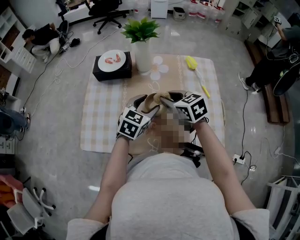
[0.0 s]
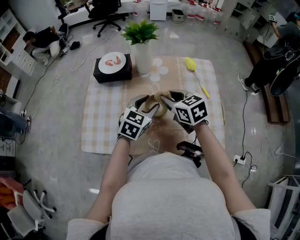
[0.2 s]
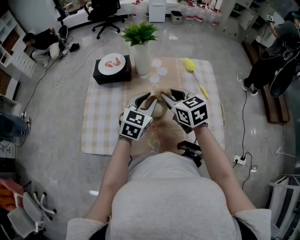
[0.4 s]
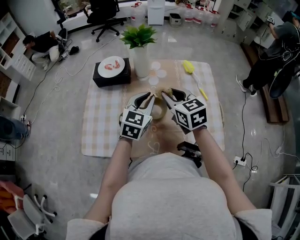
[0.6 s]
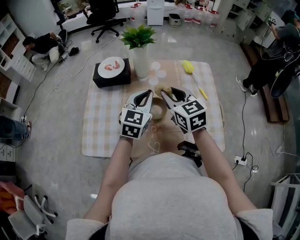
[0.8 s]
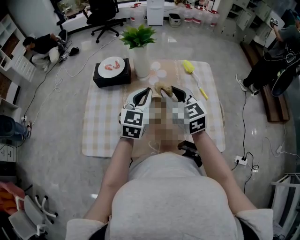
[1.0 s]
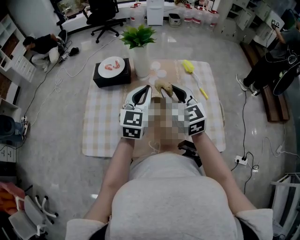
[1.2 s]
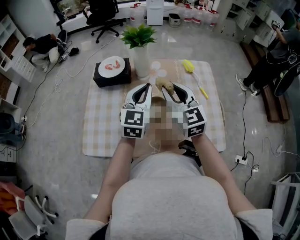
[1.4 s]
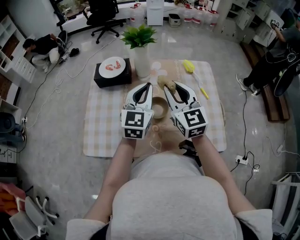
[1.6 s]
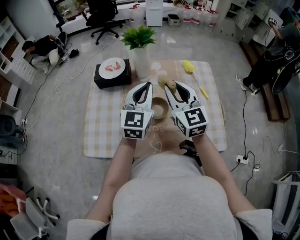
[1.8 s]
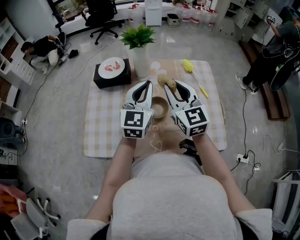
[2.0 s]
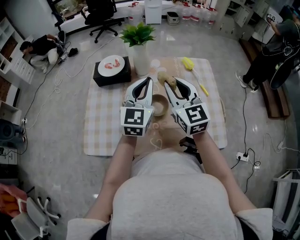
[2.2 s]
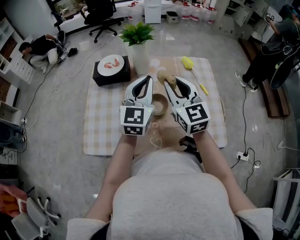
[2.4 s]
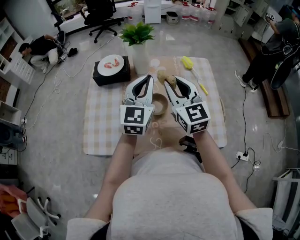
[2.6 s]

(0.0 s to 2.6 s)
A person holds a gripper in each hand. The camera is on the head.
0.0 s - 1.2 s: The two grippers go about 10 cm upward. The left gripper swivels some 30 degrees, and closes its fingers. Meanwhile the right gripper rotates some 30 degrees.
1.2 s - 2.6 s: The grippers move only a little.

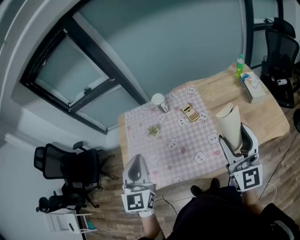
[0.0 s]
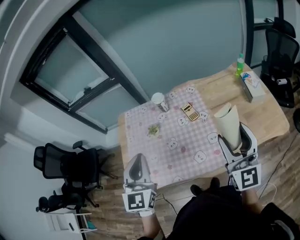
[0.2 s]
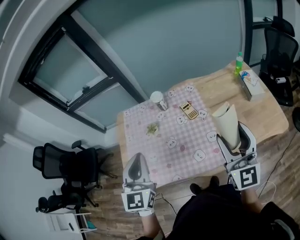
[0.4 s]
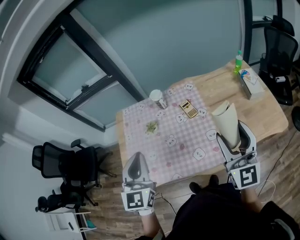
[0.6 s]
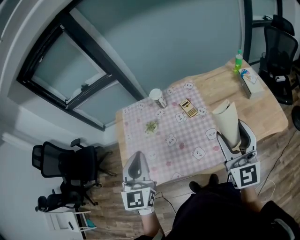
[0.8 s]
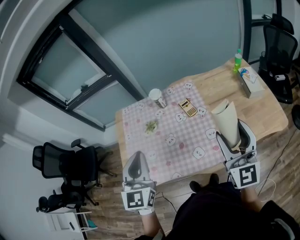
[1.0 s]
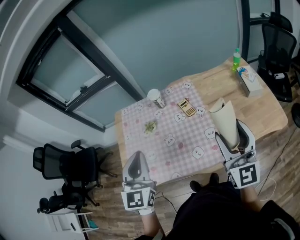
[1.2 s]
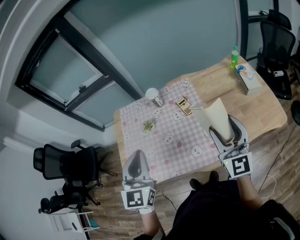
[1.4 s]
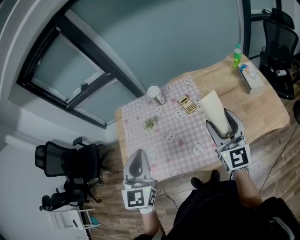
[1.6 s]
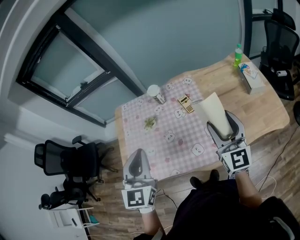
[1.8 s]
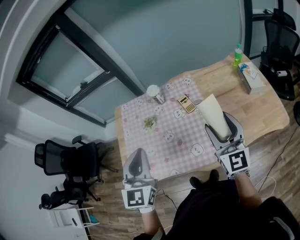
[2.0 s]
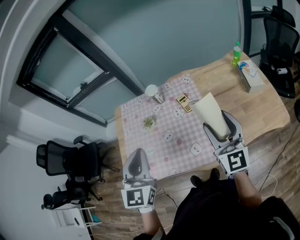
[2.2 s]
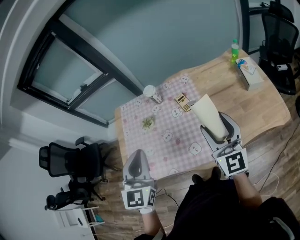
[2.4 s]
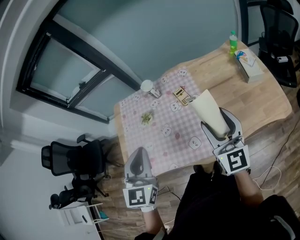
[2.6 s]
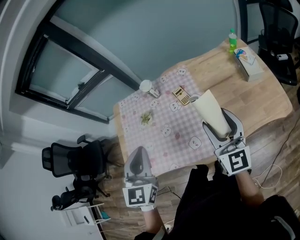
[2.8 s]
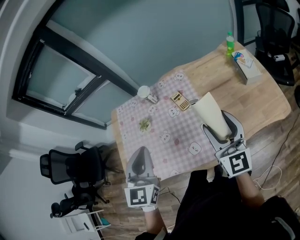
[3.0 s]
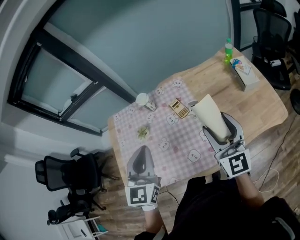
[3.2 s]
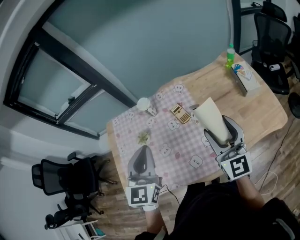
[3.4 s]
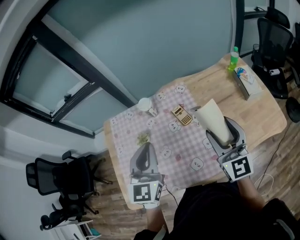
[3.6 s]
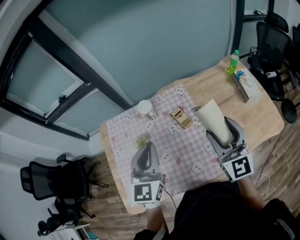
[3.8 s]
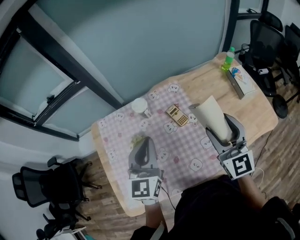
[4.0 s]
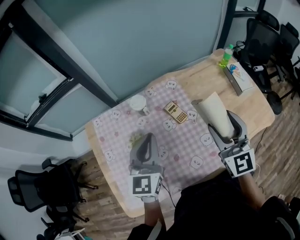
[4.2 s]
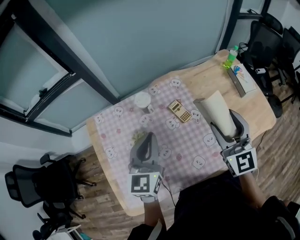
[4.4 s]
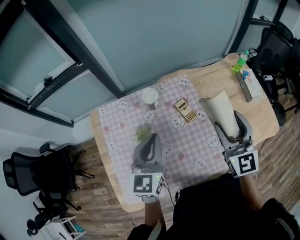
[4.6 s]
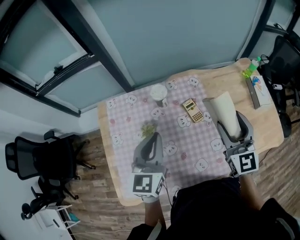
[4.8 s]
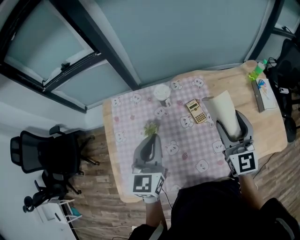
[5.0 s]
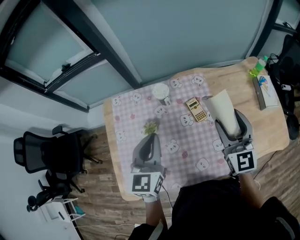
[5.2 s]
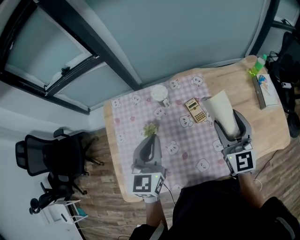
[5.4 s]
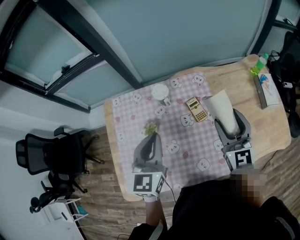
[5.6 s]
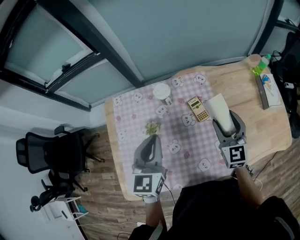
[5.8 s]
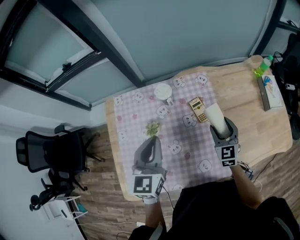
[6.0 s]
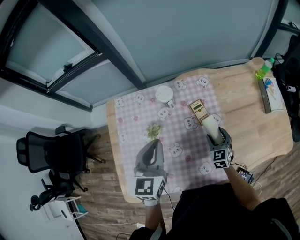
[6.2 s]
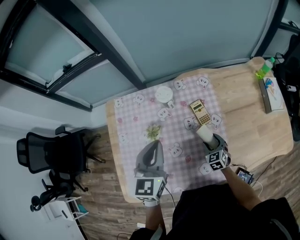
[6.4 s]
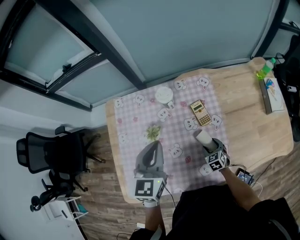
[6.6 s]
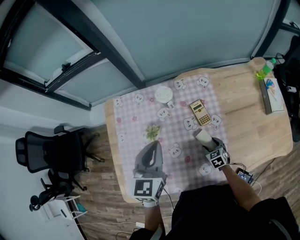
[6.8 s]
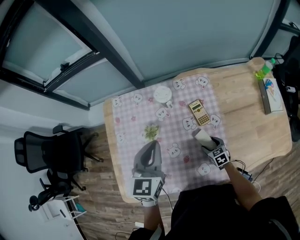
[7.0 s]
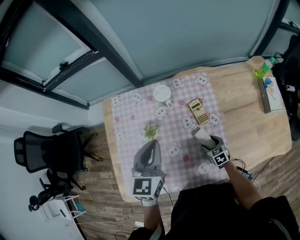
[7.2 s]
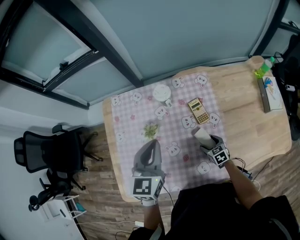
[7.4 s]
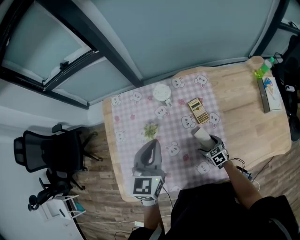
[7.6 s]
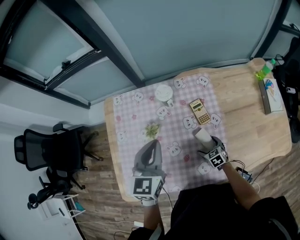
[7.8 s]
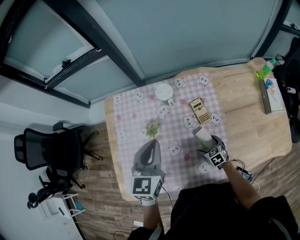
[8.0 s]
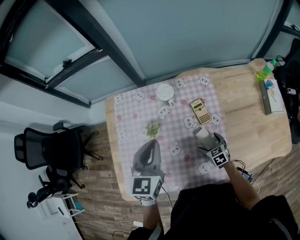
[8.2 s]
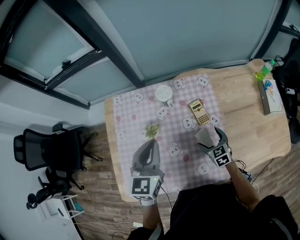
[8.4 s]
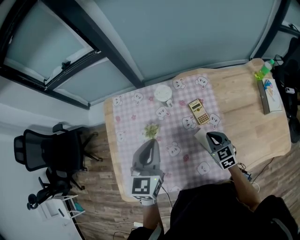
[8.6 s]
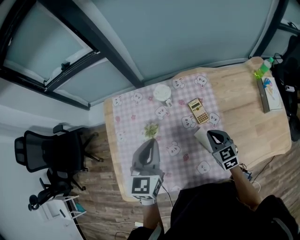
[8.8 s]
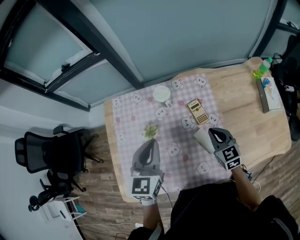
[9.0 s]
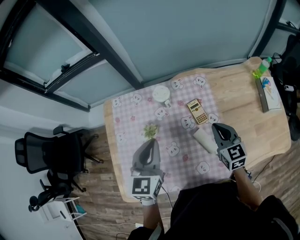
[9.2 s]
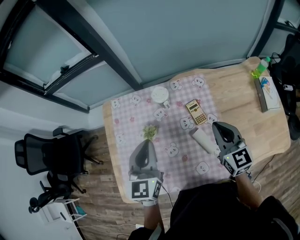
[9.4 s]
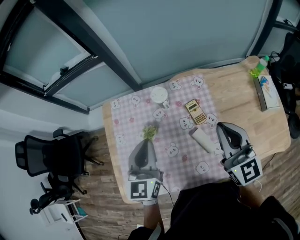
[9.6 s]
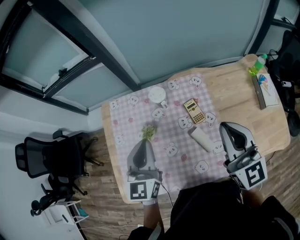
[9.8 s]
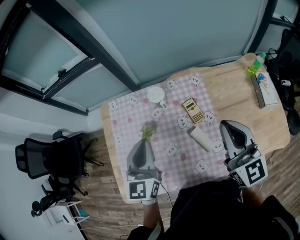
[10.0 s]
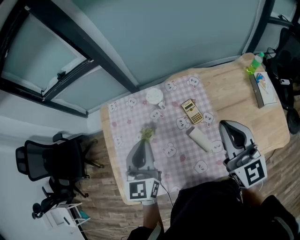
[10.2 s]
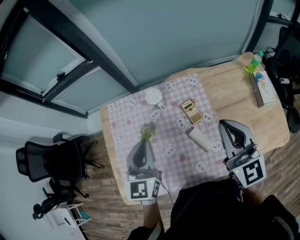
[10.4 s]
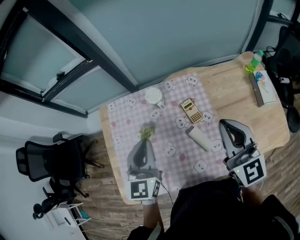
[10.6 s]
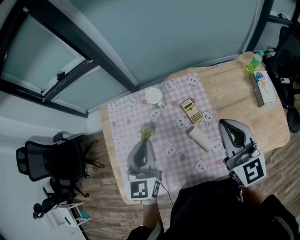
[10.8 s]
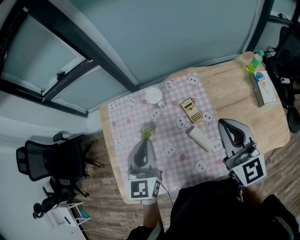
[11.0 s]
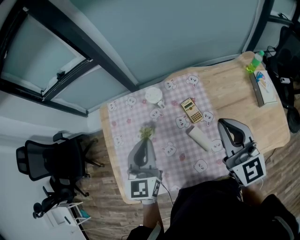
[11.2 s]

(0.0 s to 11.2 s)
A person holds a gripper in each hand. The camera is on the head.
0.0 s - 1.6 s: The right gripper heads forward, covering roughly 5 cm.
1.6 s - 3.2 s: The left gripper is displaced forward and to the right by some 10 cm.
3.2 s - 4.8 s: The left gripper shifts about 20 cm forward, to the left and downward, while the right gripper moves forward and to the left, some 15 cm.
4.8 s - 6.4 s: The right gripper goes roughly 35 cm downward, and points its fingers roughly 40 degrees further downward.
6.4 s - 8.0 s: The right gripper shifts about 5 cm downward, and opens up.
8.0 s - 9.6 s: The right gripper travels upward by approximately 40 cm, tilts its fingers some 50 degrees upward, and closes up.
9.6 s - 11.2 s: There are only small adjustments of the grippers.

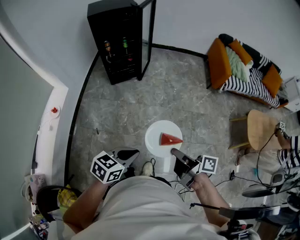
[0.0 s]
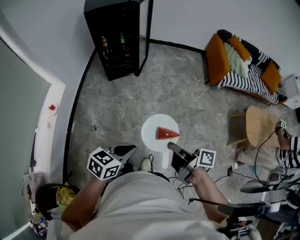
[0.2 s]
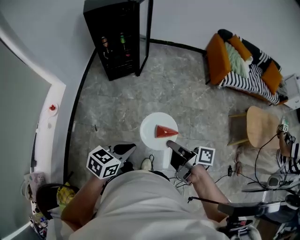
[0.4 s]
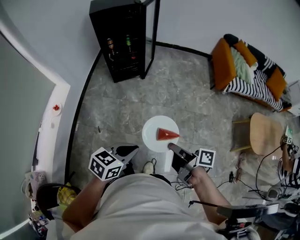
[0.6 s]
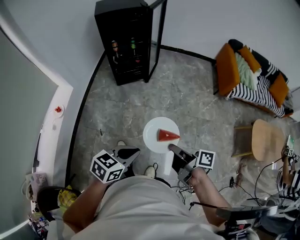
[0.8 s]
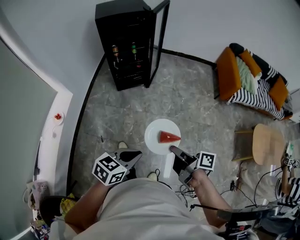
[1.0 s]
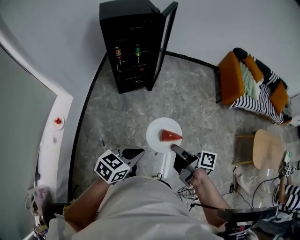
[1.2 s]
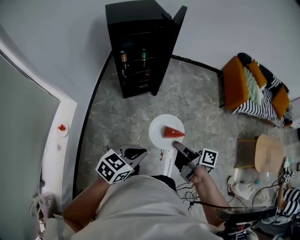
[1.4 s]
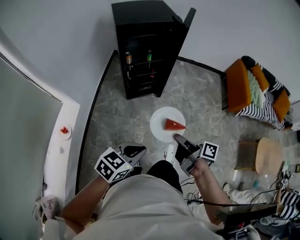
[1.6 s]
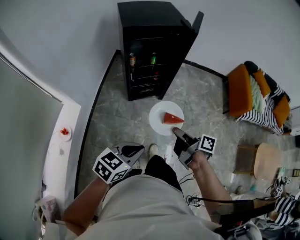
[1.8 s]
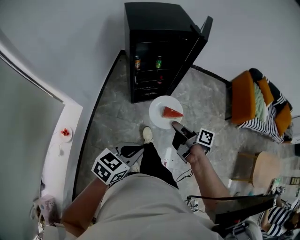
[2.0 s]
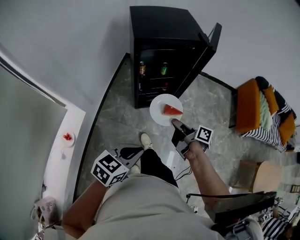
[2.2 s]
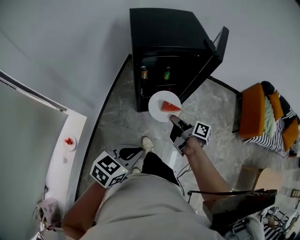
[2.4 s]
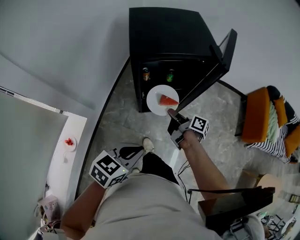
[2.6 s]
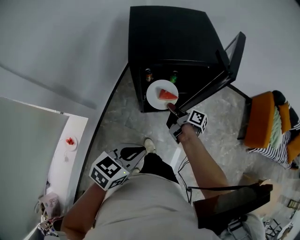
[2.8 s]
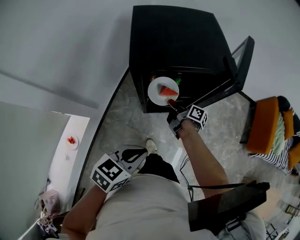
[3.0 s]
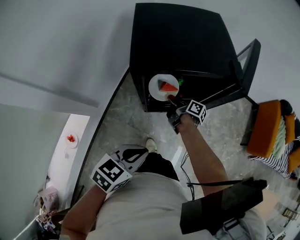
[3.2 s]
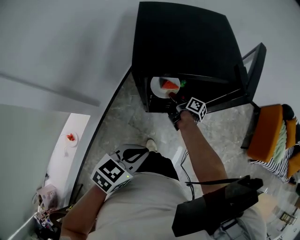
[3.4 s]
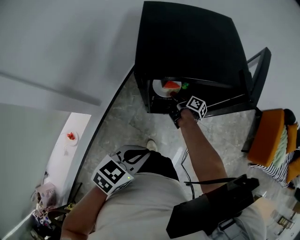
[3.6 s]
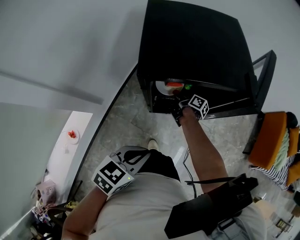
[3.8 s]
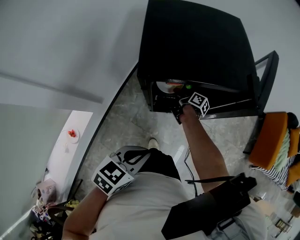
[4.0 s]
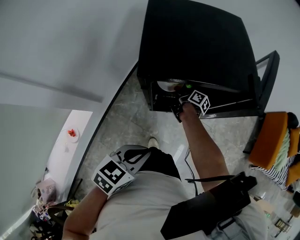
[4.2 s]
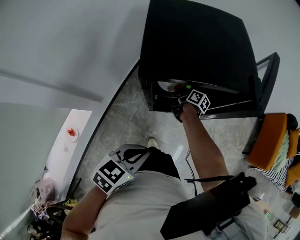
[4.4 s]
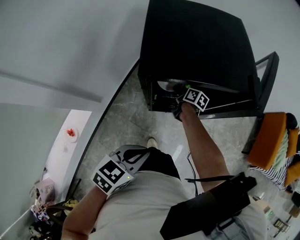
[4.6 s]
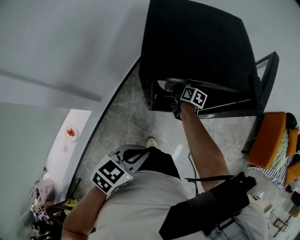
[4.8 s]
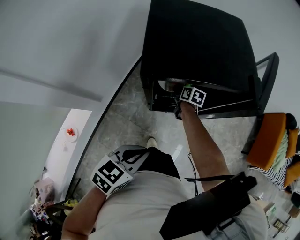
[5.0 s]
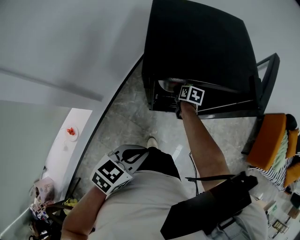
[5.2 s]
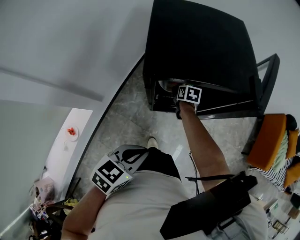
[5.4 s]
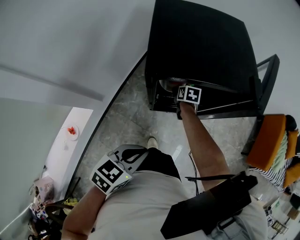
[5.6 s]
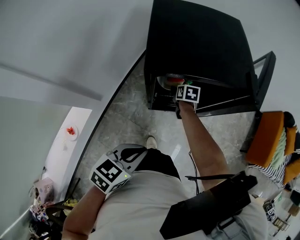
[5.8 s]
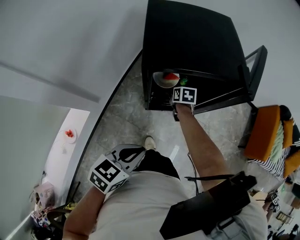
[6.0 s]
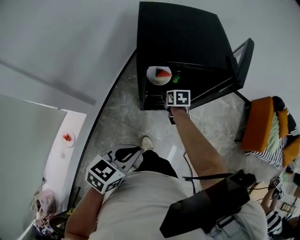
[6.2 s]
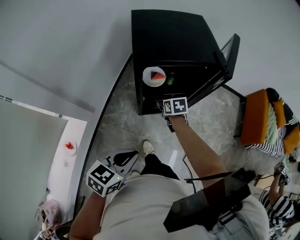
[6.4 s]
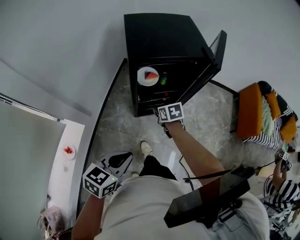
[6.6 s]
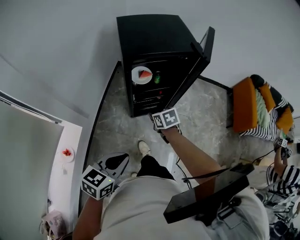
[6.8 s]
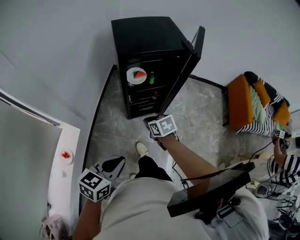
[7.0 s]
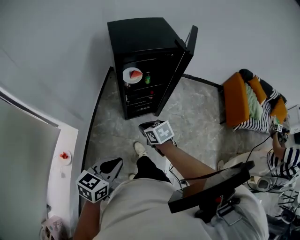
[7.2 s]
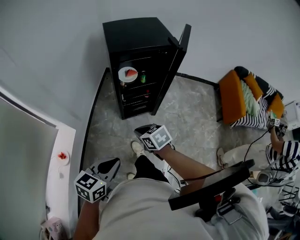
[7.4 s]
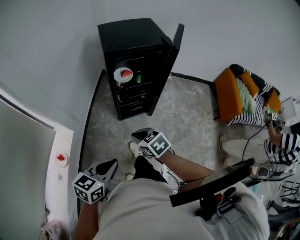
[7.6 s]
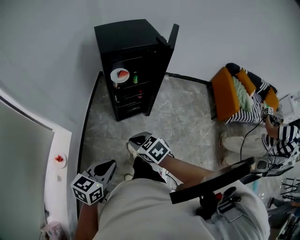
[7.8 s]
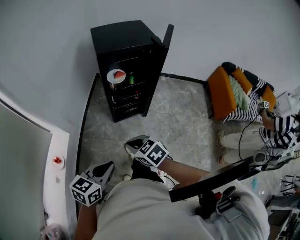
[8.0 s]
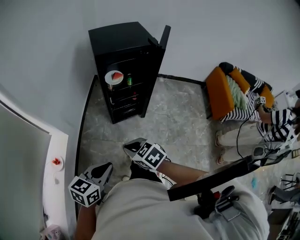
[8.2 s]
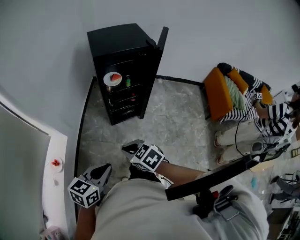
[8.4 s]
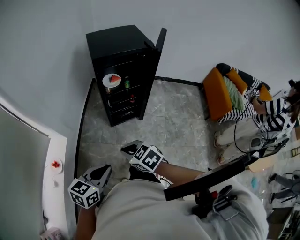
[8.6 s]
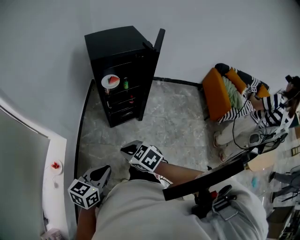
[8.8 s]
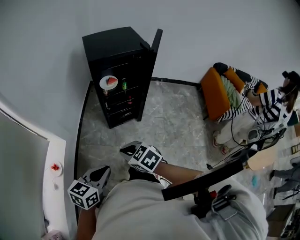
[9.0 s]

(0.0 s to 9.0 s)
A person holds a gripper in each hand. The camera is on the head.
0.0 s - 1.6 s: The two grippers go approximately 40 cm forward and to the left.
1.6 s - 3.0 s: The left gripper heads forward, covering roughly 30 cm, while the right gripper heads forward, covering about 50 cm.
3.0 s - 4.4 s: The right gripper shifts roughly 15 cm forward and downward, while the left gripper moves forward, approximately 5 cm.
4.4 s - 6.0 s: The right gripper ends up some 5 cm from where it was, rolls counterclockwise, seen from behind, by approximately 40 degrees, and opens.
6.0 s - 7.6 s: The left gripper travels backward by approximately 20 cm, while the right gripper heads backward and upward, covering roughly 40 cm, changes its angle by approximately 30 degrees, and closes its fingers.
7.6 s - 9.0 s: Both grippers move backward, roughly 15 cm.

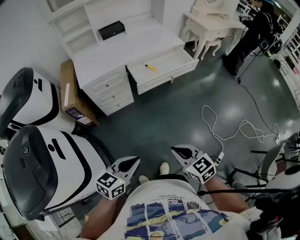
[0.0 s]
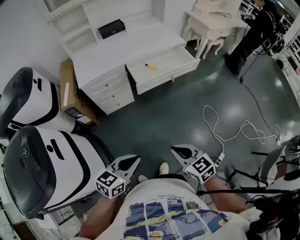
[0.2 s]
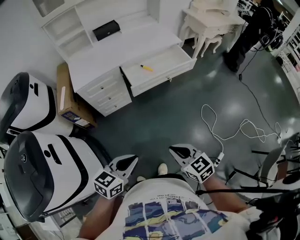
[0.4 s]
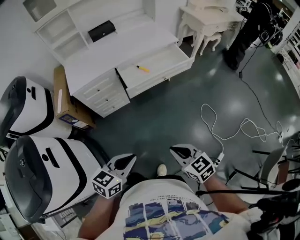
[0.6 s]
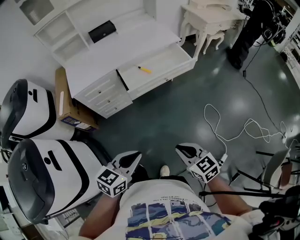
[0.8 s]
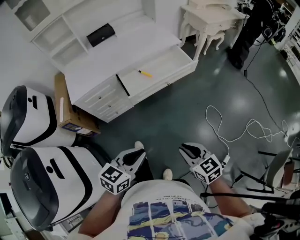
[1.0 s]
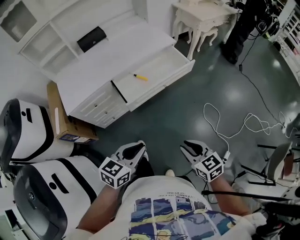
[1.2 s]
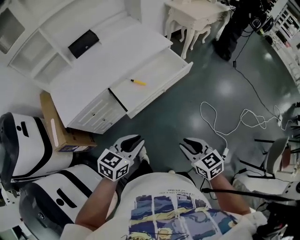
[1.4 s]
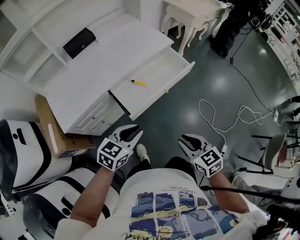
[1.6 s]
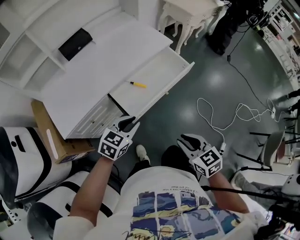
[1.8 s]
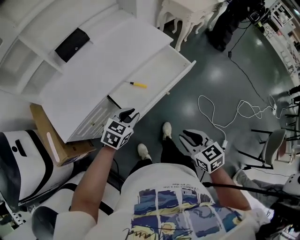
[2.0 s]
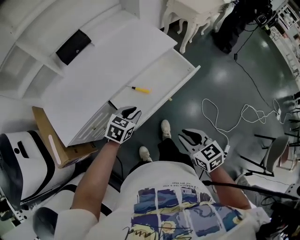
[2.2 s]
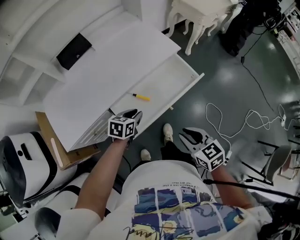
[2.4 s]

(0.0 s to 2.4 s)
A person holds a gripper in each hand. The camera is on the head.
0.0 s - 1.2 s: The right gripper heads forward and to the right, covering approximately 20 cm; the left gripper heads forward, covering about 25 cm.
1.2 s - 2.4 s: The left gripper heads forward and downward, covering approximately 35 cm, and swivels approximately 20 degrees, while the right gripper is displaced forward by roughly 20 cm.
